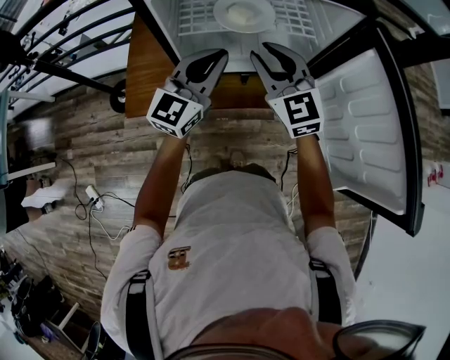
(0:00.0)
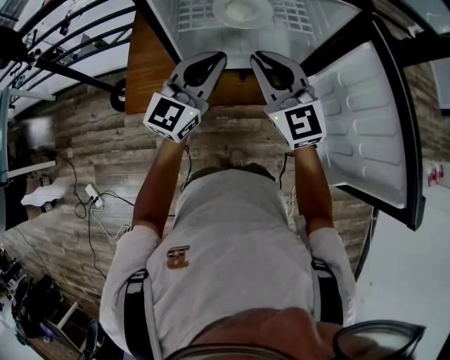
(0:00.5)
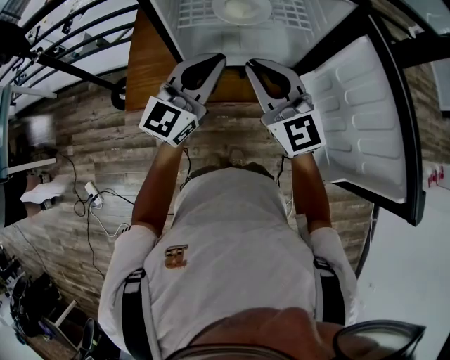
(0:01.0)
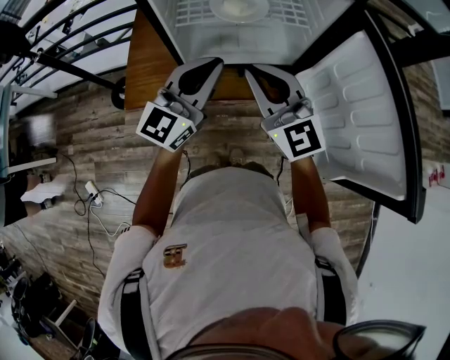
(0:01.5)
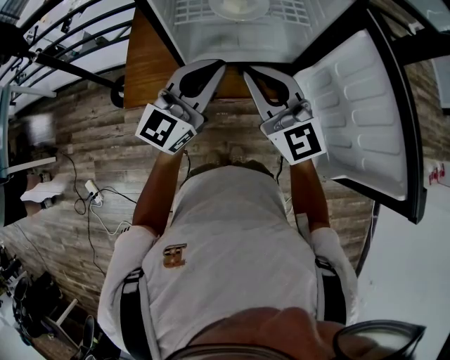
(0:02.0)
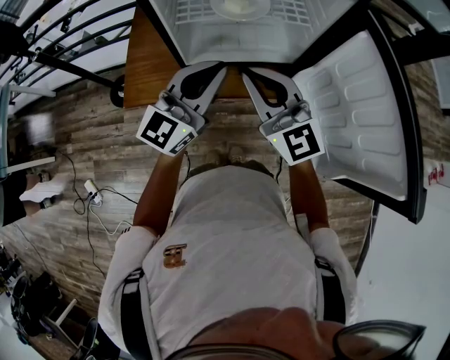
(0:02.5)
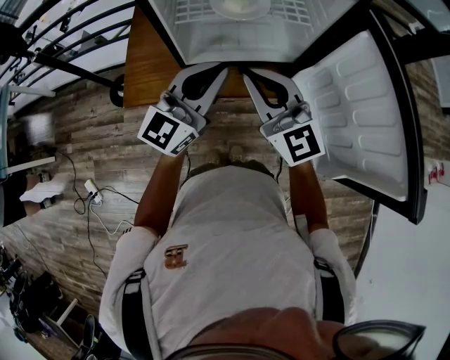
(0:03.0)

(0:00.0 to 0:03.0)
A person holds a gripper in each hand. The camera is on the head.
0:00.0 - 0:01.5: The two grippers go roughly 10 cm backward. The right gripper closes its fingers.
0:01.5 - 0:03.0: Both grippers stay about where they are.

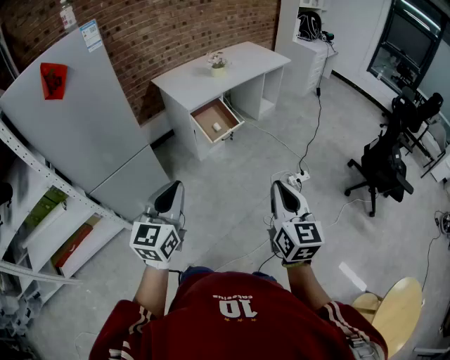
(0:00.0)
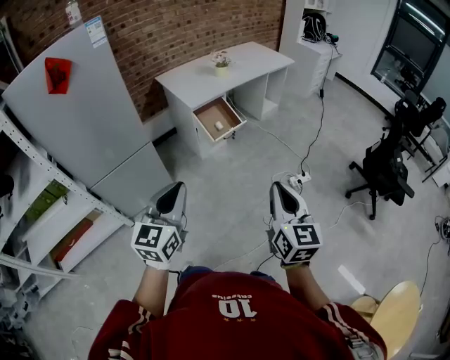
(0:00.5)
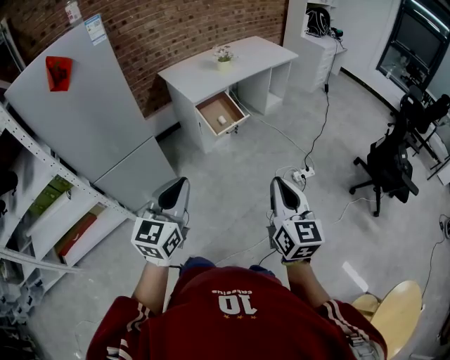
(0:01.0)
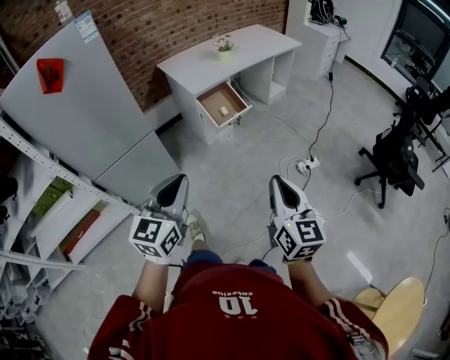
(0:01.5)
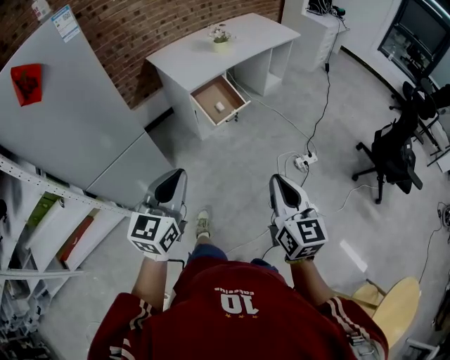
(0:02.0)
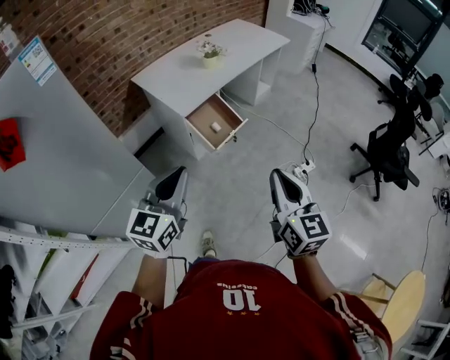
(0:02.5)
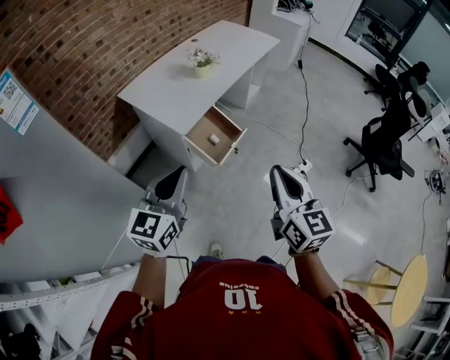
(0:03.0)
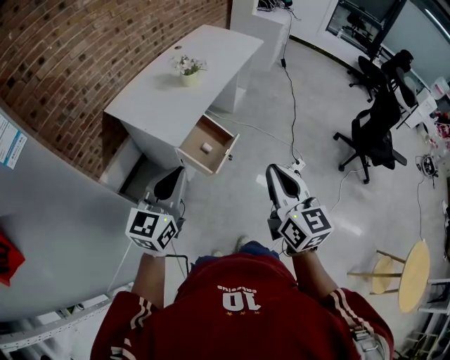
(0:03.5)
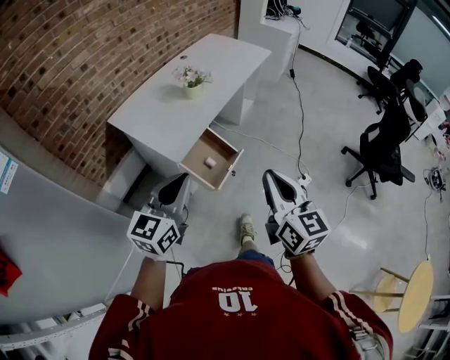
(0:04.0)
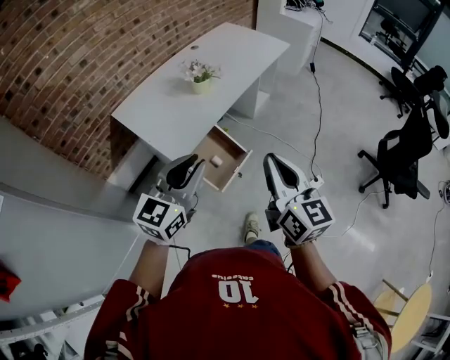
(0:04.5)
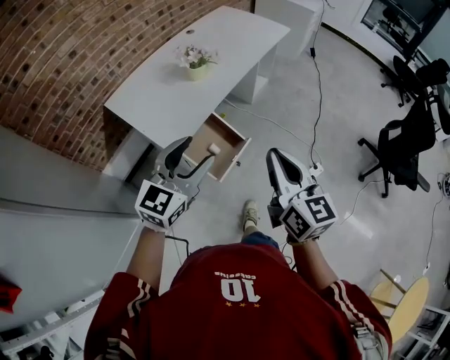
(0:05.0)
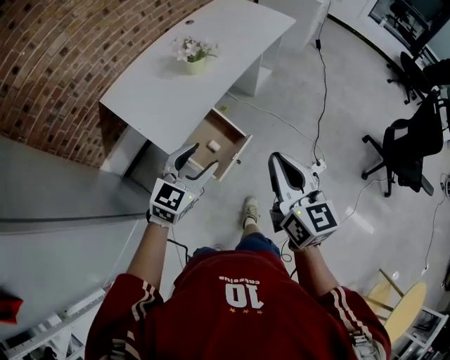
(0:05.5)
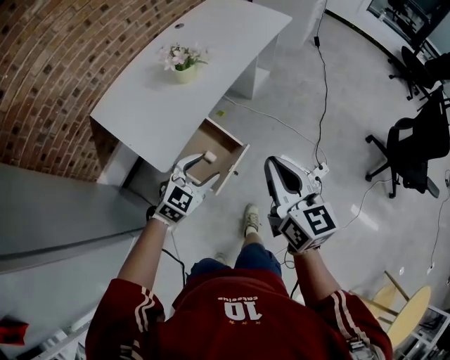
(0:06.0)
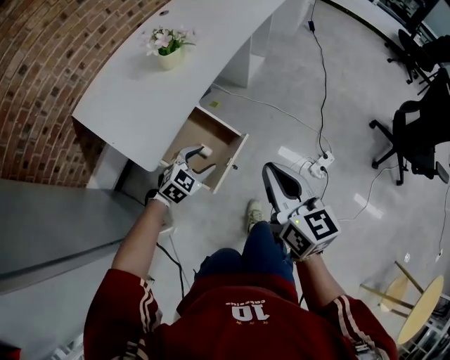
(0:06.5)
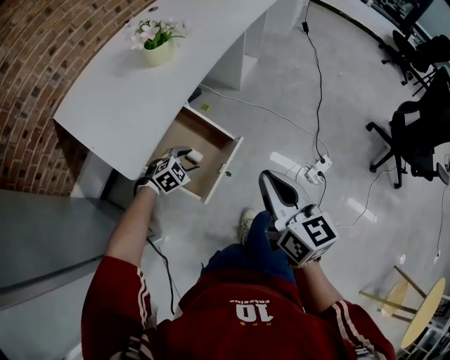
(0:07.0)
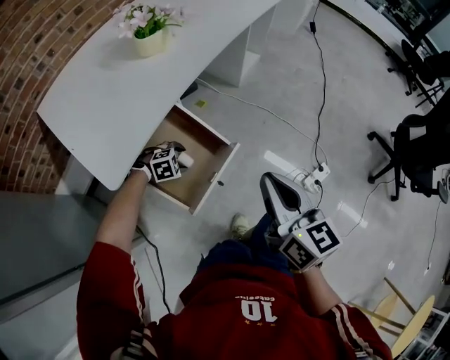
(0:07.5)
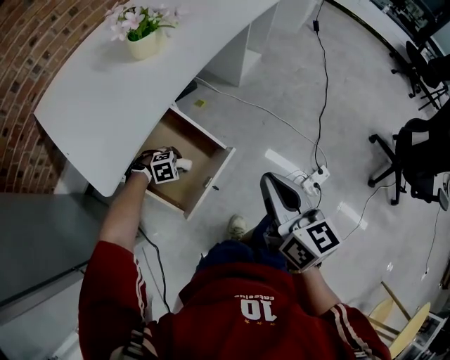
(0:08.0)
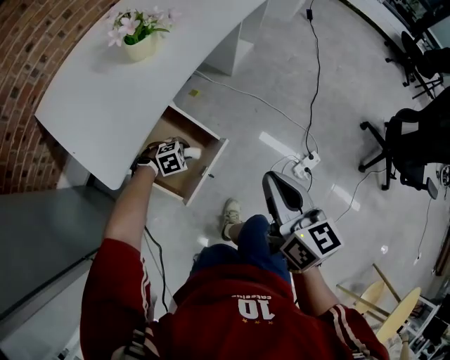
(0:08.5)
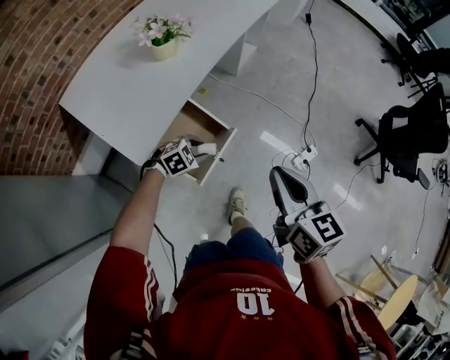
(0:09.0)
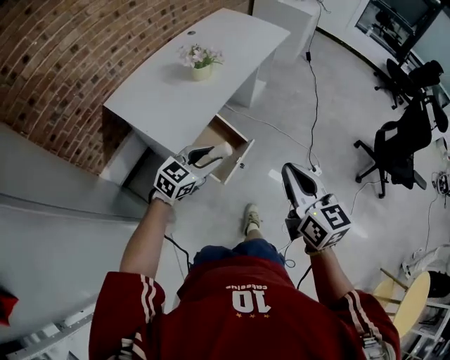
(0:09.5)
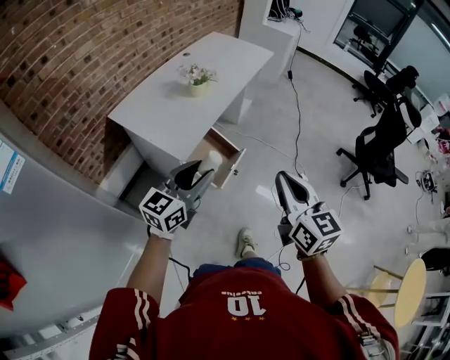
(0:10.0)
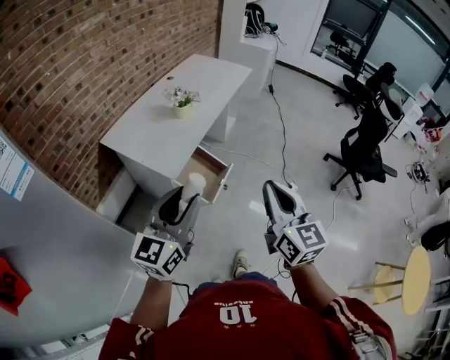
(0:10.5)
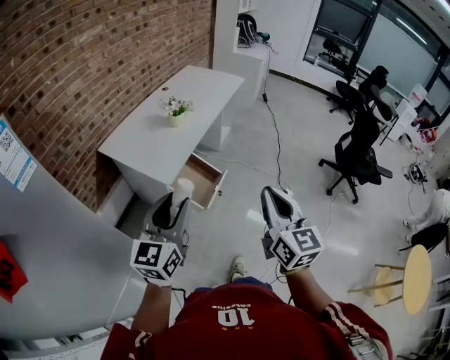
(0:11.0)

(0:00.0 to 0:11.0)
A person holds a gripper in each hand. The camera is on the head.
0:00.0 - 0:02.0: Both grippers travel together forward, about 10 cm.
0:02.0 - 0:03.5: The grippers both shift forward and to the left by about 35 cm. The left gripper turns by approximately 20 degrees.
0:03.5 - 0:05.5: The left gripper goes roughly 25 cm forward, downward and to the right, changes its angle by about 20 degrees, and opens up; the right gripper moves forward, approximately 20 cm.
0:05.5 - 0:07.5: The right gripper moves downward, some 25 cm; the left gripper travels downward by roughly 50 cm, and tips its fingers downward by roughly 50 degrees.
0:07.5 - 0:09.0: The grippers both shift upward by roughly 20 cm. The left gripper closes its fingers.
0:09.0 - 0:11.0: The left gripper shifts about 60 cm upward and backward, and angles its fingers upward, by roughly 60 degrees, while the right gripper goes roughly 35 cm backward and upward, and swivels some 30 degrees.

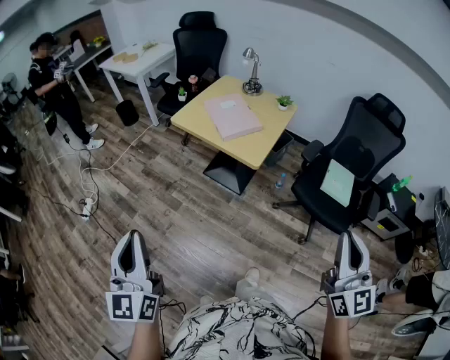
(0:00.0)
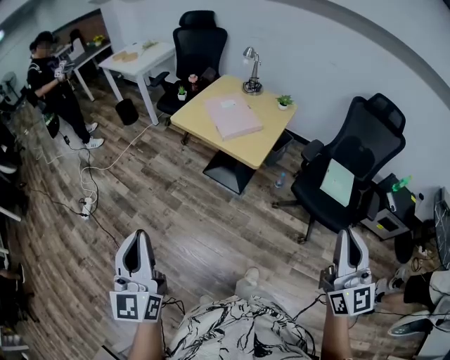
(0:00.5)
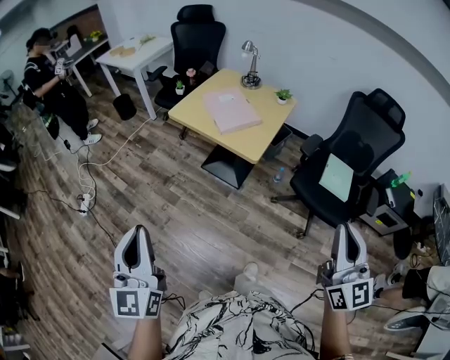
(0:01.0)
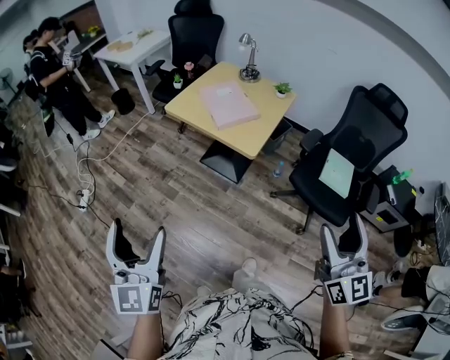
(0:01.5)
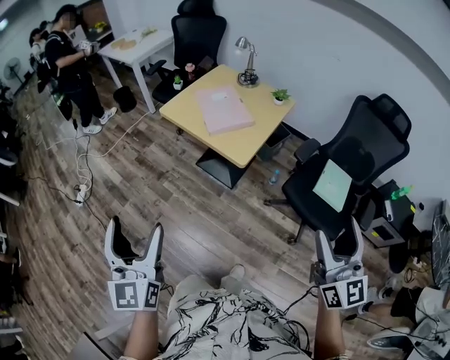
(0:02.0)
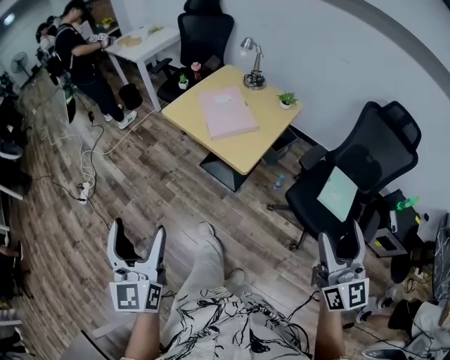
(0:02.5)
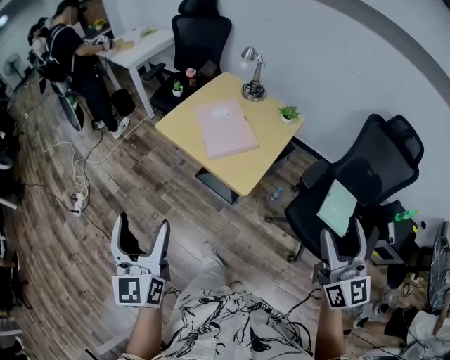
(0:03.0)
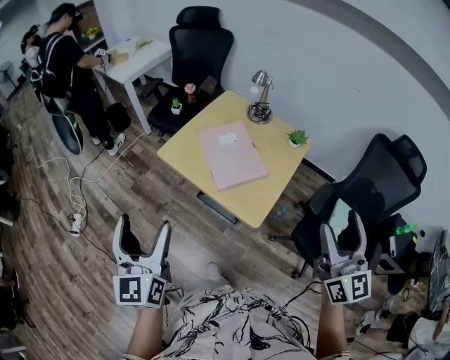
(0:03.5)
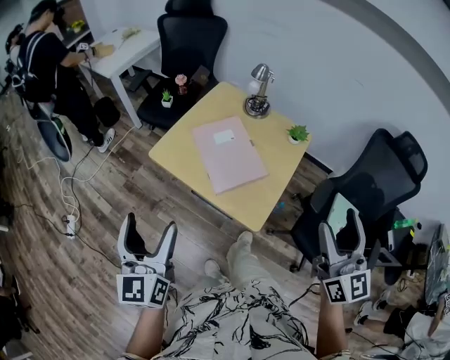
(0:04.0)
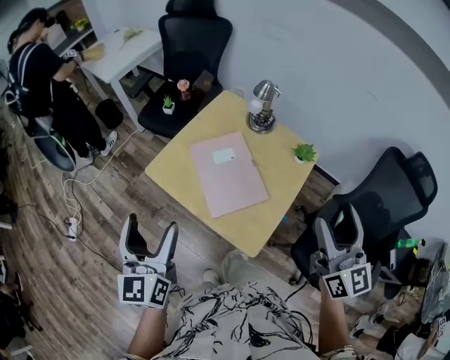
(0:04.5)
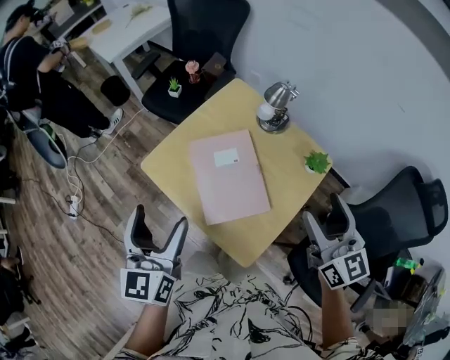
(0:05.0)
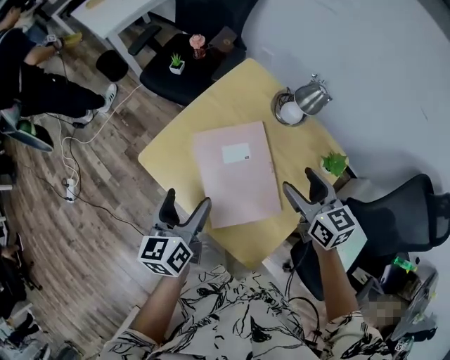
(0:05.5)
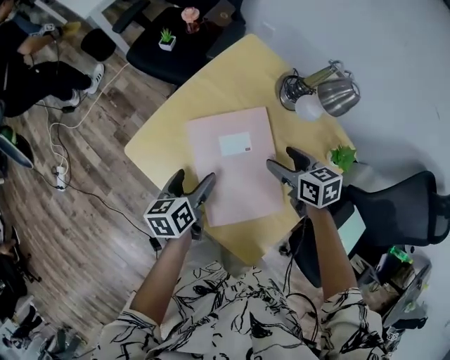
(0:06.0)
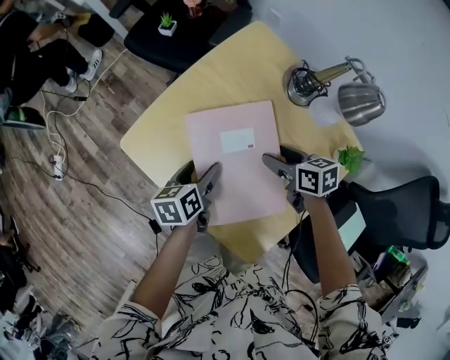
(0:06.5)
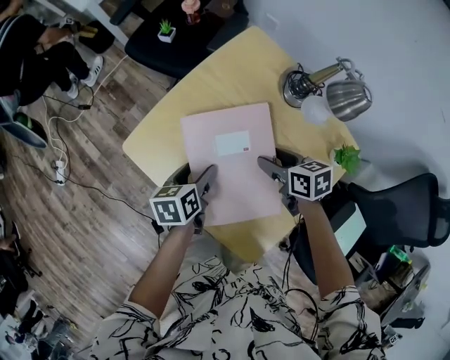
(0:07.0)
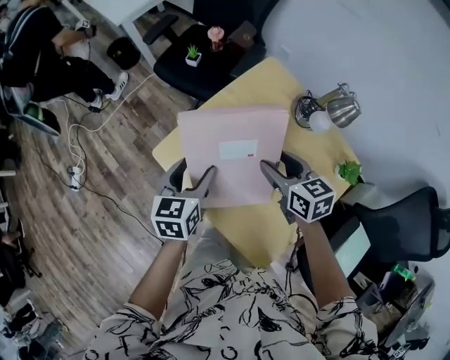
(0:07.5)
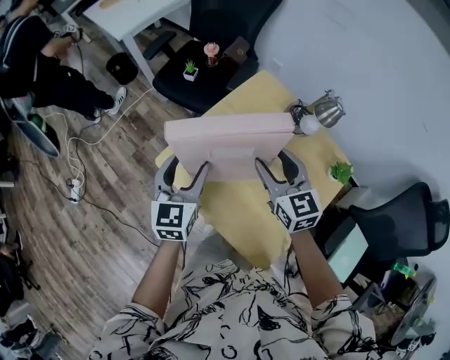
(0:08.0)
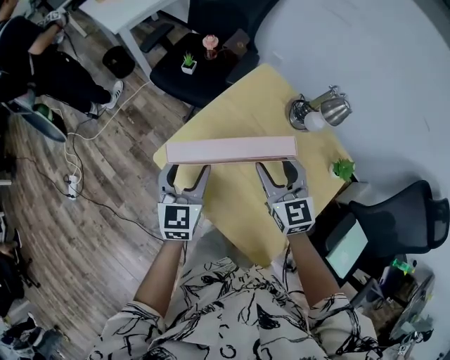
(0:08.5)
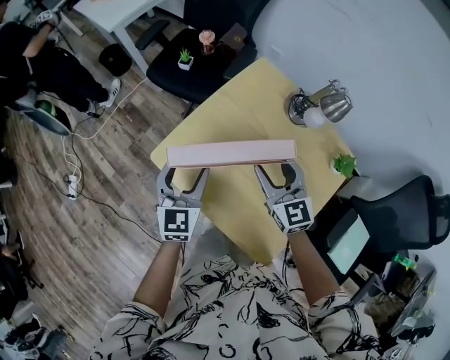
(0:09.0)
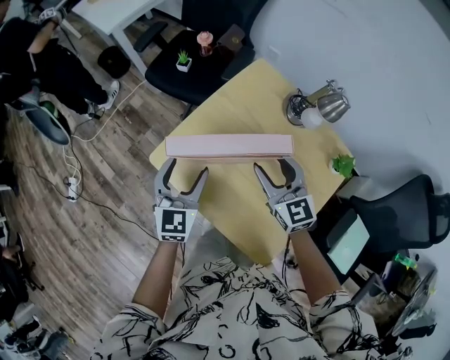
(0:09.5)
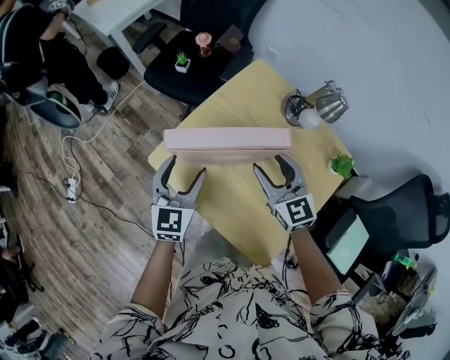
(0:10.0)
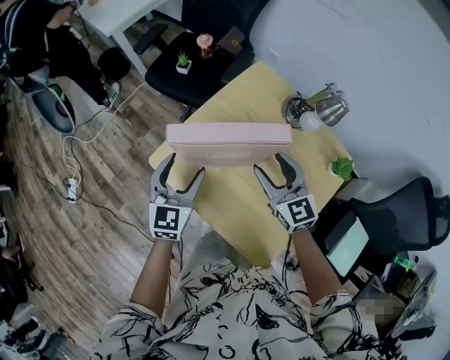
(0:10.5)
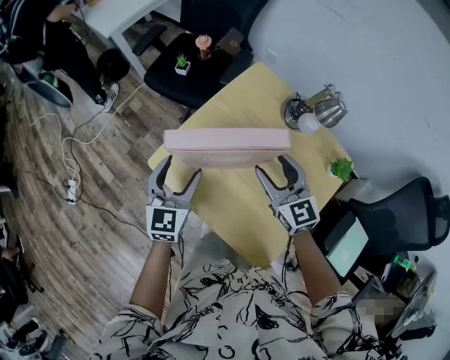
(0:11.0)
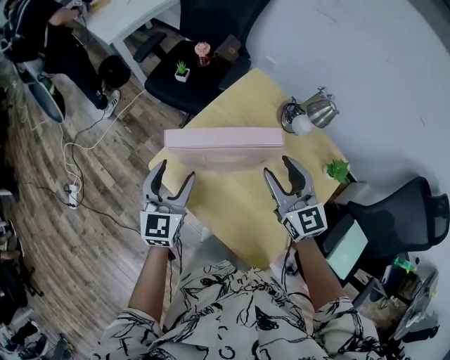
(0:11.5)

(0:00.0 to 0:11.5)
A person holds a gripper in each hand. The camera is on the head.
0:00.0 - 0:02.0: The right gripper travels forward and to the right by roughly 10 cm, and opens up, while the left gripper moves to the right and forward, some 10 cm, and opens up.
0:02.0 - 0:04.0: Both grippers move forward, about 35 cm.
0:04.0 - 0:06.0: The right gripper travels forward and downward by about 60 cm, and angles its fingers downward, by roughly 50 degrees. Meanwhile the left gripper moves downward, forward and to the right, about 50 cm, and tips its fingers downward by about 30 degrees.
0:06.0 - 0:07.5: The right gripper shifts some 10 cm upward and to the left. The left gripper heads upward, covering approximately 10 cm, and rotates some 30 degrees.
0:07.5 - 0:09.5: The right gripper swivels about 30 degrees. Meanwhile the left gripper changes its angle by some 30 degrees.
0:09.5 - 0:11.5: The right gripper moves approximately 5 cm.

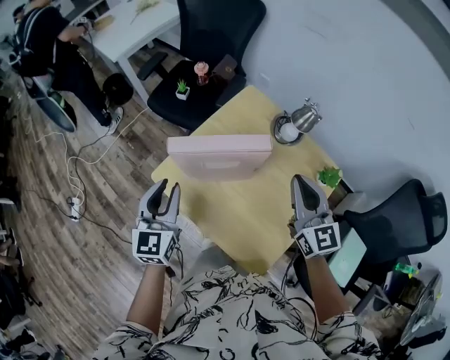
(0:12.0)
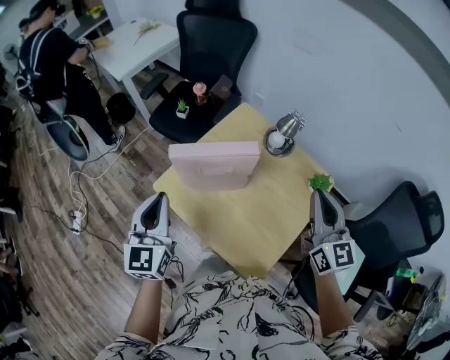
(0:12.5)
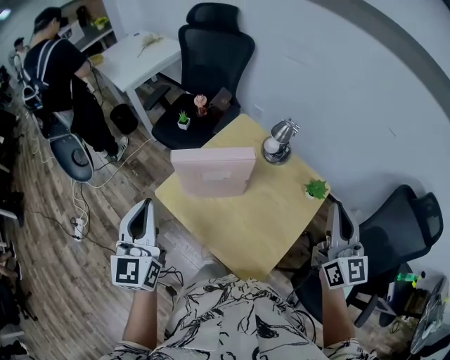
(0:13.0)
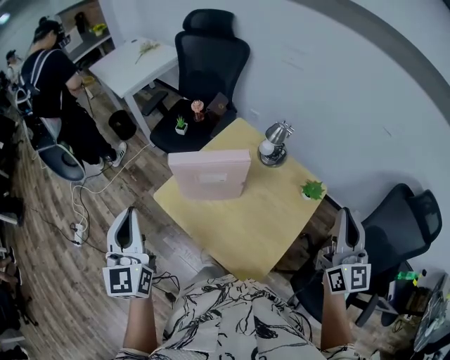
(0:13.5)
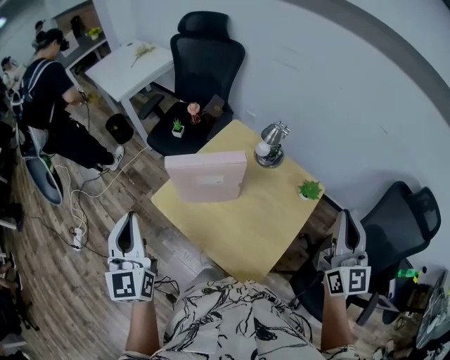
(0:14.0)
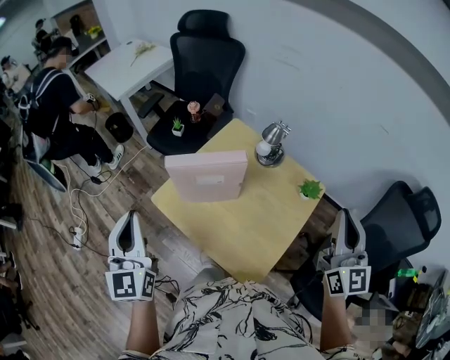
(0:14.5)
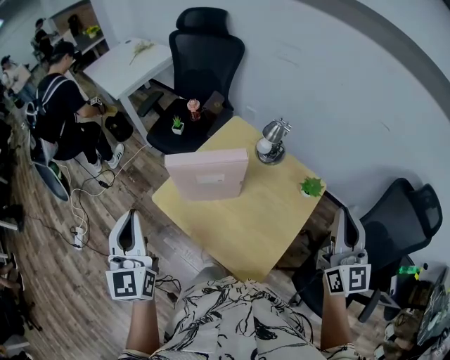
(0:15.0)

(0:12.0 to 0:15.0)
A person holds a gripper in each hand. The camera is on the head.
0:12.0 - 0:13.5: The left gripper shifts about 20 cm upward and backward; the right gripper travels upward, to the right and backward by some 25 cm, and swivels about 20 degrees.
0:13.5 - 0:15.0: The two grippers keep their place.
